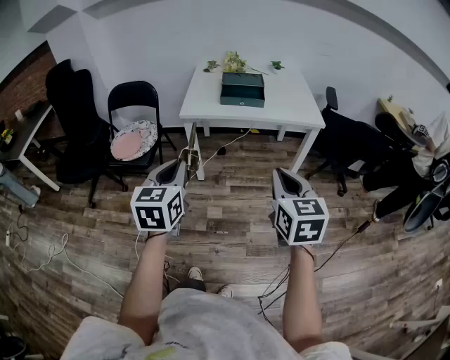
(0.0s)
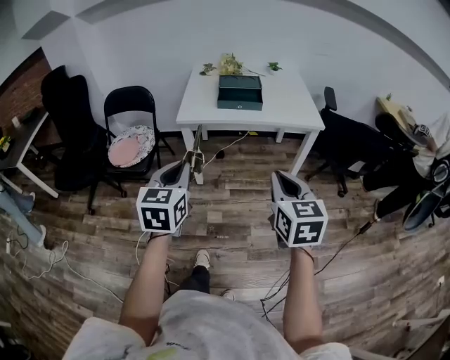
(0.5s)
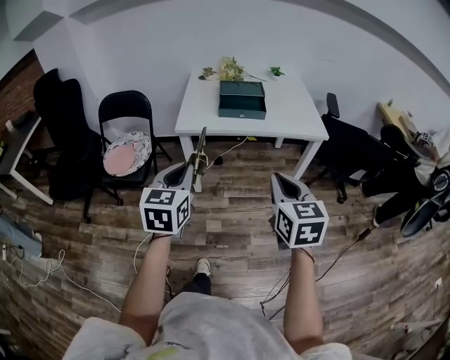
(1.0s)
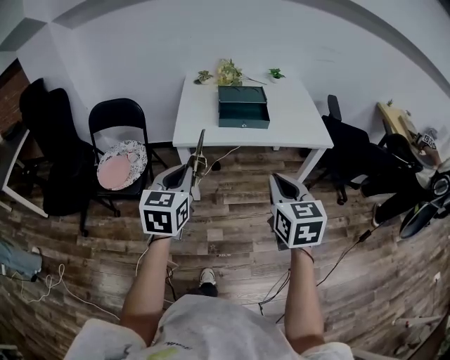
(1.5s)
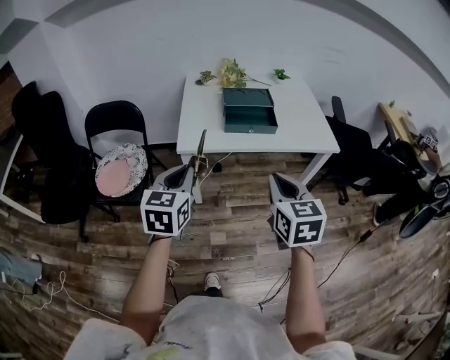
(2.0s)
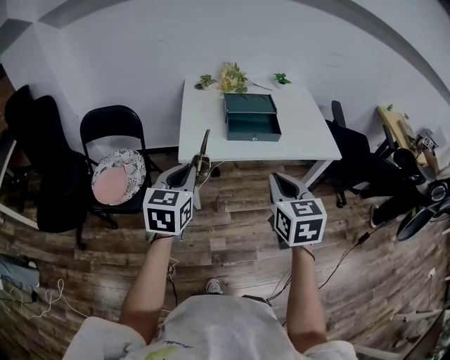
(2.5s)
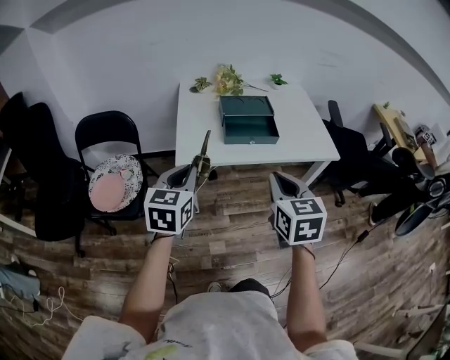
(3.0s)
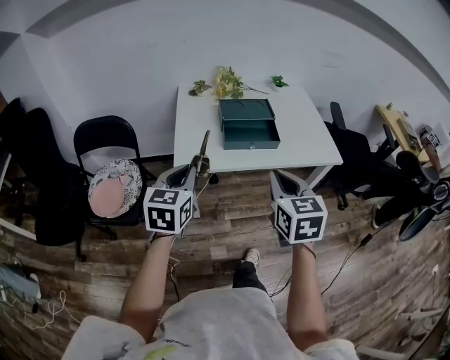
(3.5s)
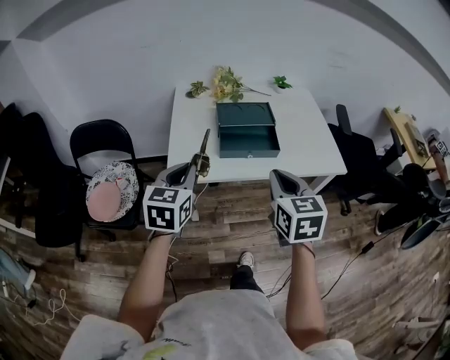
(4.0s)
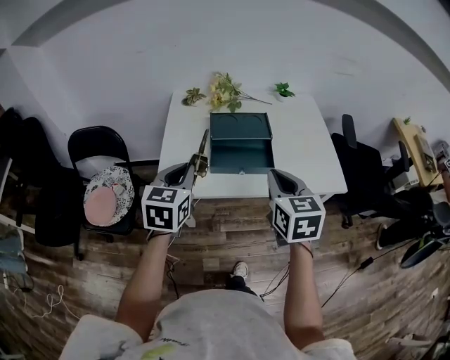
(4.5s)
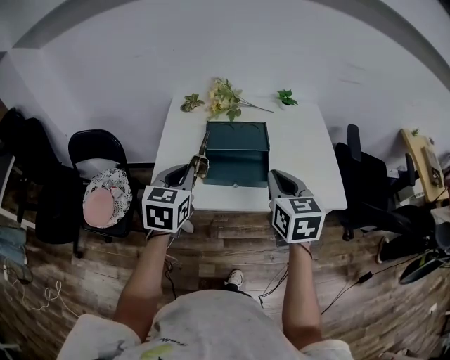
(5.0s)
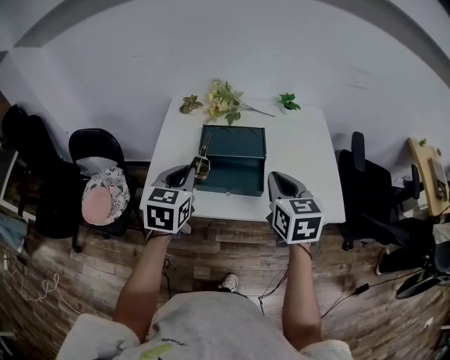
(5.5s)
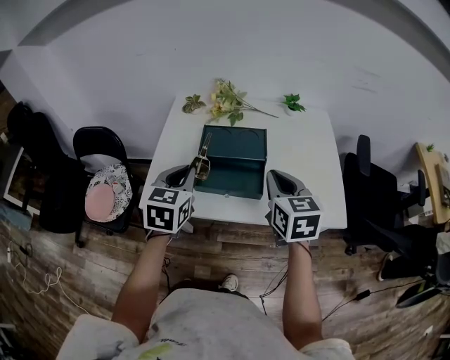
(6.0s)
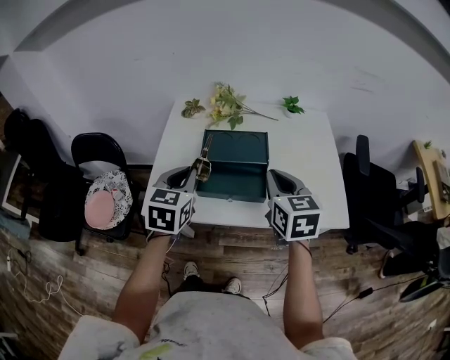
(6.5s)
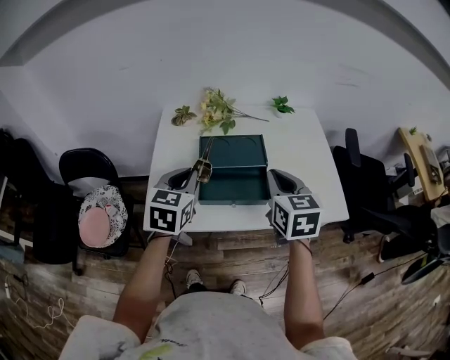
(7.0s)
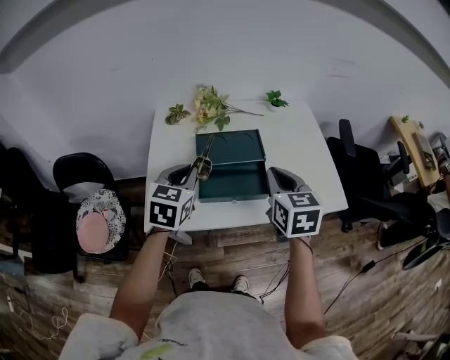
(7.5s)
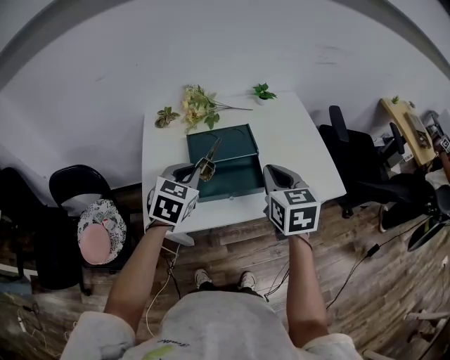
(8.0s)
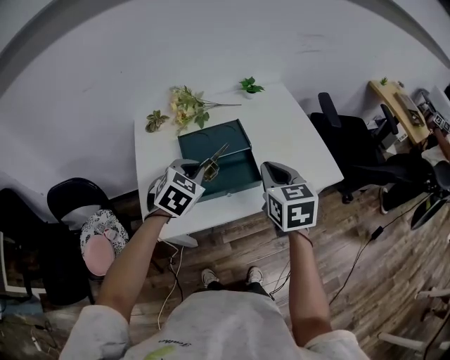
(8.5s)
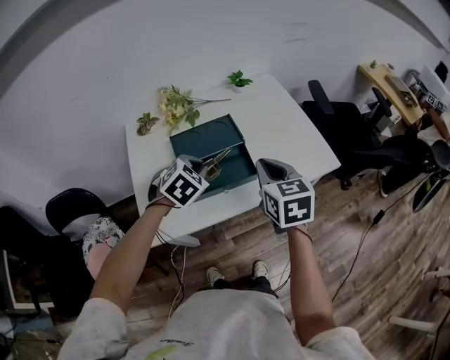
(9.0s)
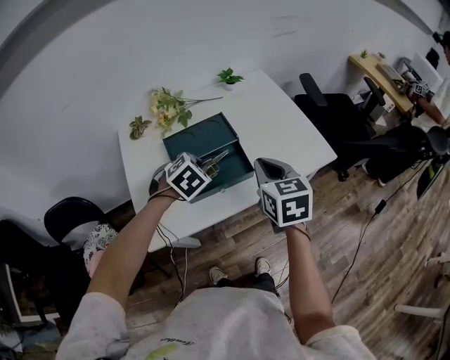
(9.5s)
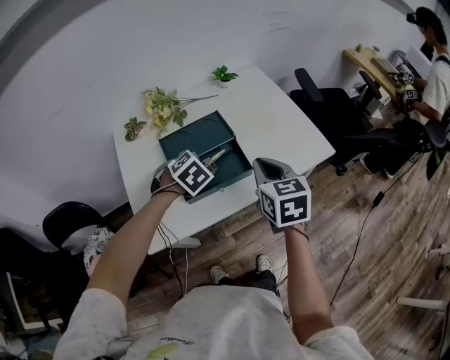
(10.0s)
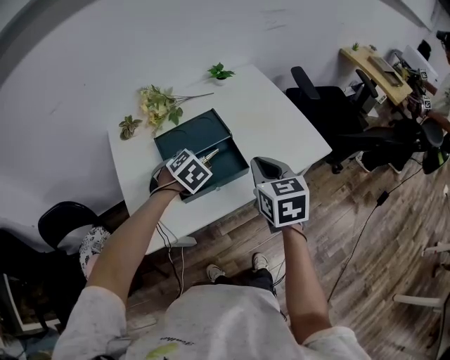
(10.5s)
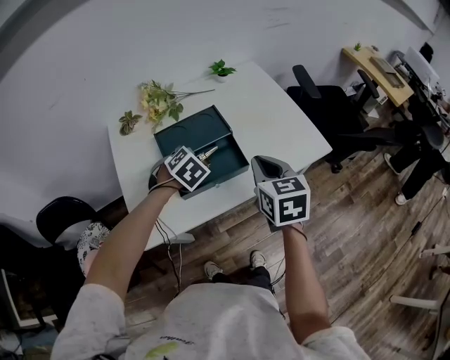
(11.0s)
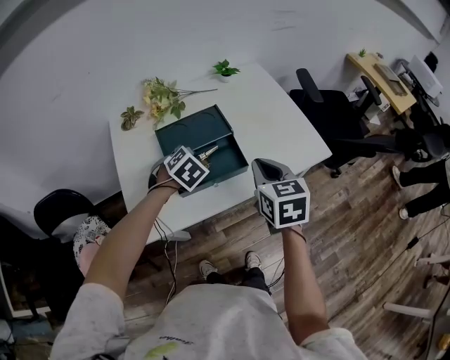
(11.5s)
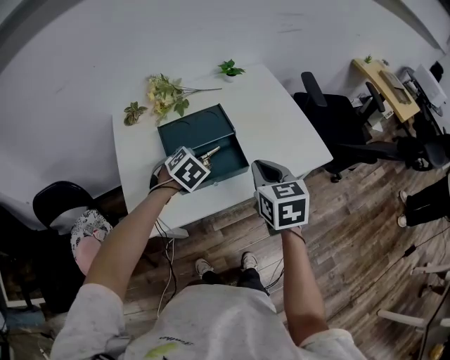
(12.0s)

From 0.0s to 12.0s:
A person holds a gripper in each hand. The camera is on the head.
From 0.0s to 2.0s: The left gripper travels forward by roughly 25 cm; the right gripper shifts some 25 cm forward and to the left.
From 2.0s to 4.0s: The grippers both shift forward by about 15 cm.
From 4.0s to 6.0s: Both grippers travel together forward and to the right, some 20 cm.
From 6.0s to 8.0s: The left gripper goes approximately 5 cm forward, and changes its angle by roughly 30 degrees.
From 8.0s to 10.0s: The left gripper moves downward, to the right and forward, about 10 cm, and turns by approximately 40 degrees.
From 10.0s to 12.0s: The grippers move only a little.

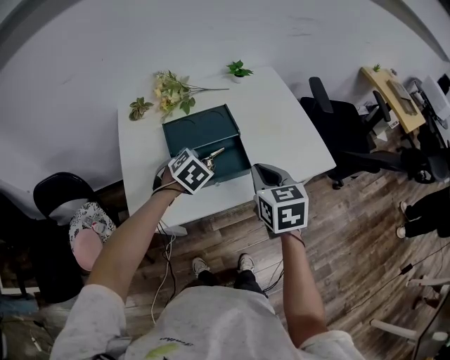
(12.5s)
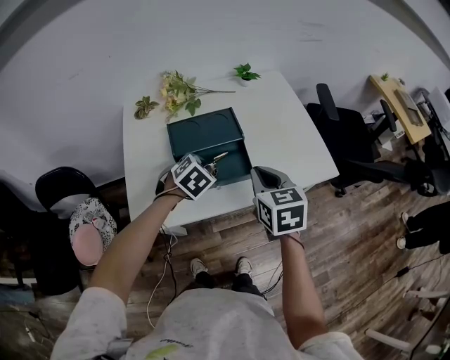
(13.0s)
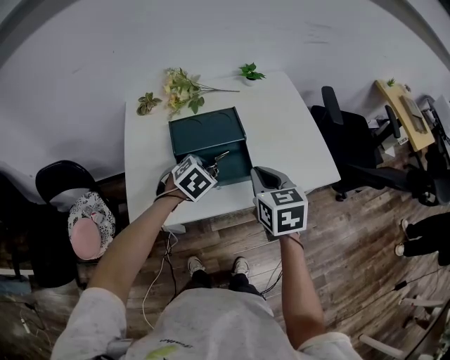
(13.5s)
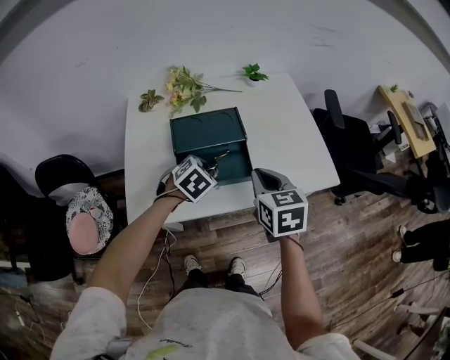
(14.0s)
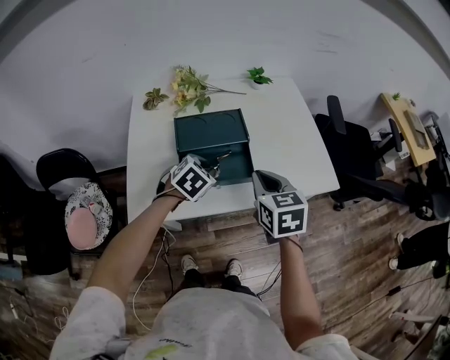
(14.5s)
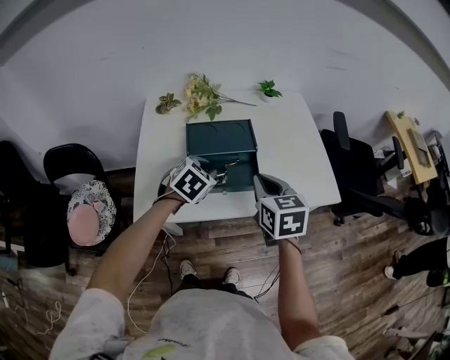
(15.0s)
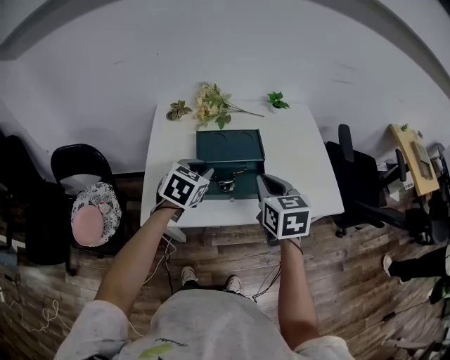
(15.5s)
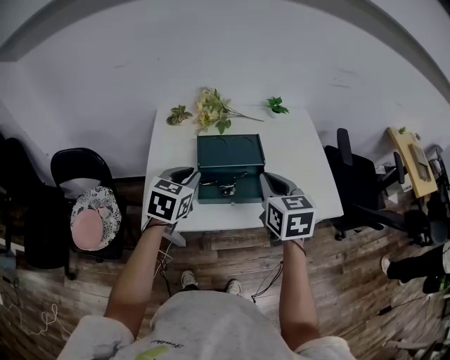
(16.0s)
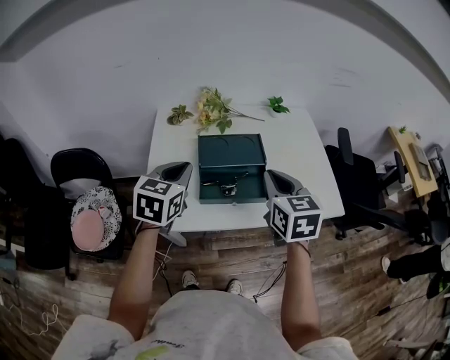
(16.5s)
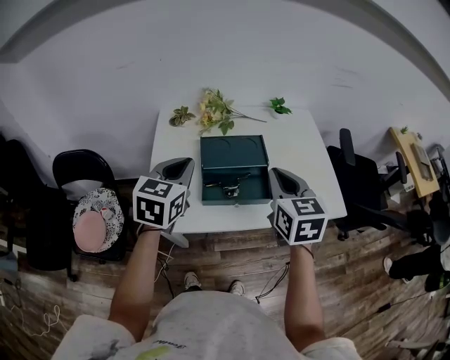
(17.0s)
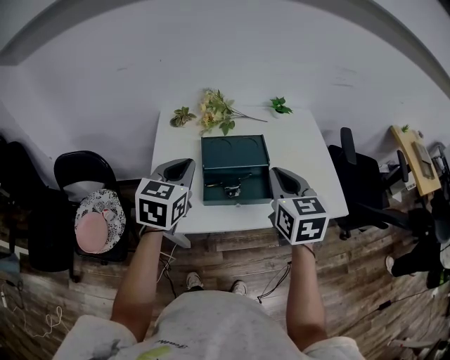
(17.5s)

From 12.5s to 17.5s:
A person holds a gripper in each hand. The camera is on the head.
From 12.5s to 15.0s: The grippers stay close to where they were, moving slightly.
From 15.0s to 17.5s: The right gripper shifts roughly 10 cm upward. Meanwhile the left gripper travels upward and to the left by approximately 15 cm, rotates some 40 degrees, and closes its fingers.

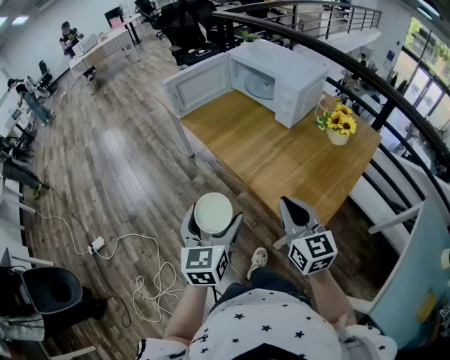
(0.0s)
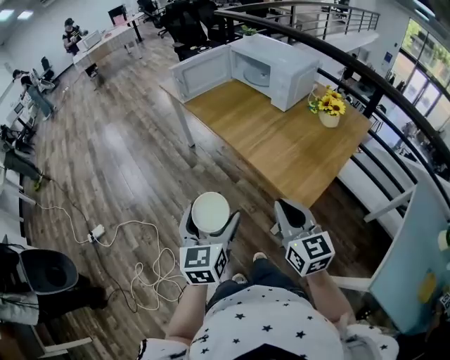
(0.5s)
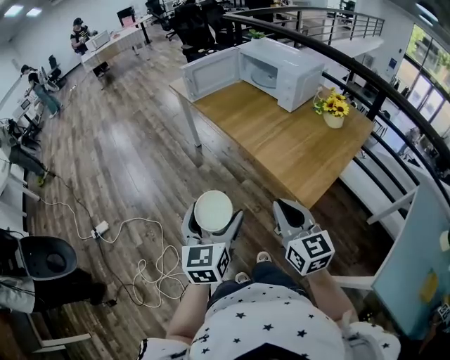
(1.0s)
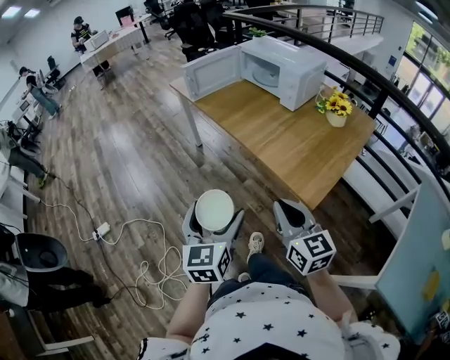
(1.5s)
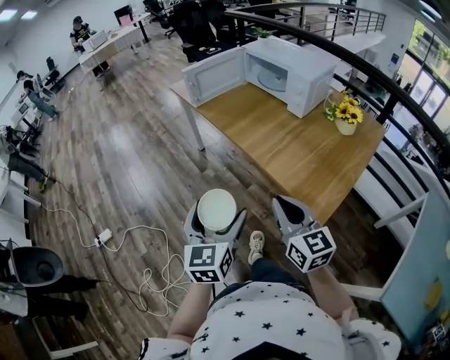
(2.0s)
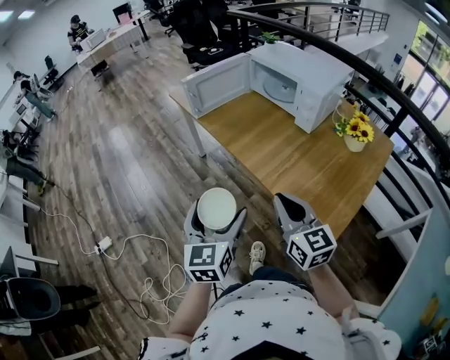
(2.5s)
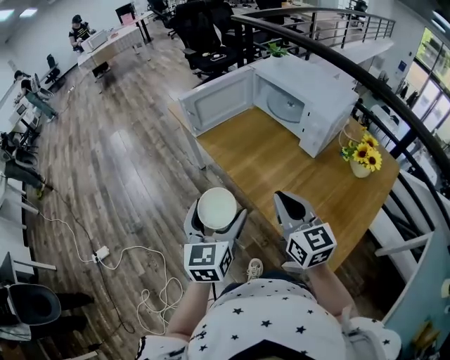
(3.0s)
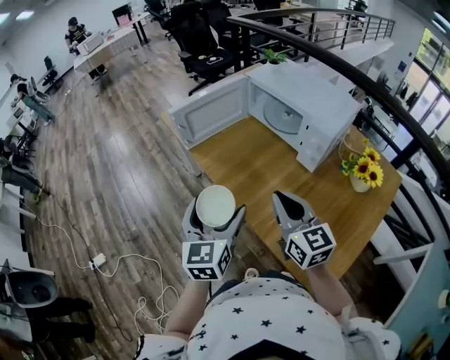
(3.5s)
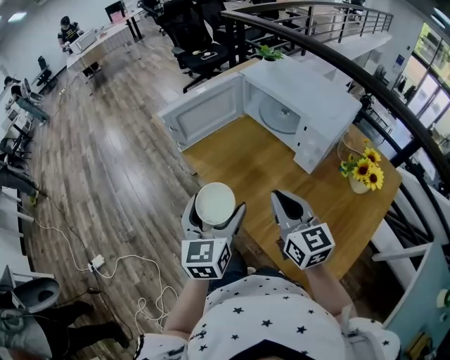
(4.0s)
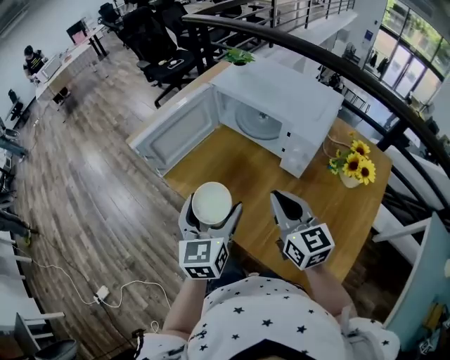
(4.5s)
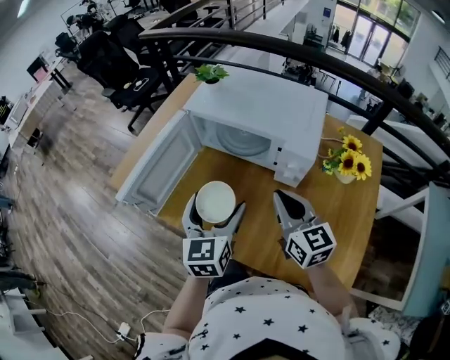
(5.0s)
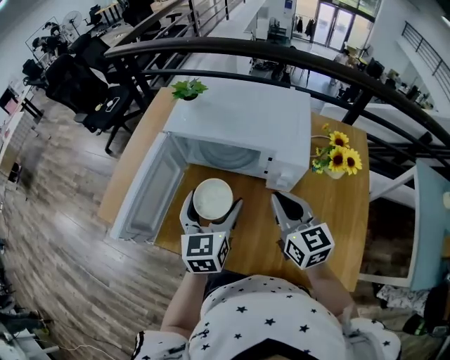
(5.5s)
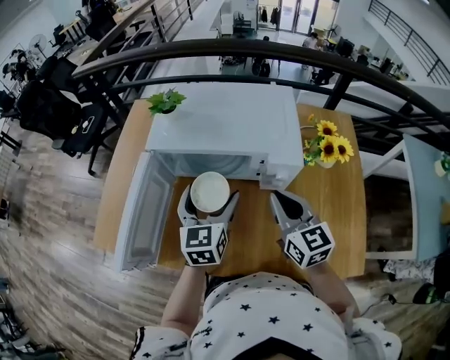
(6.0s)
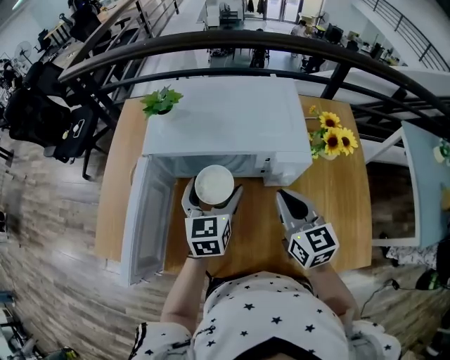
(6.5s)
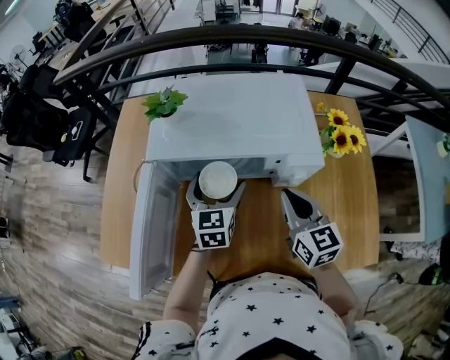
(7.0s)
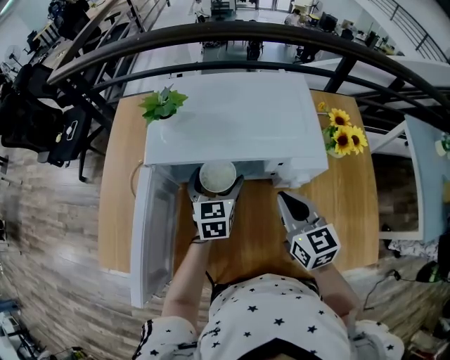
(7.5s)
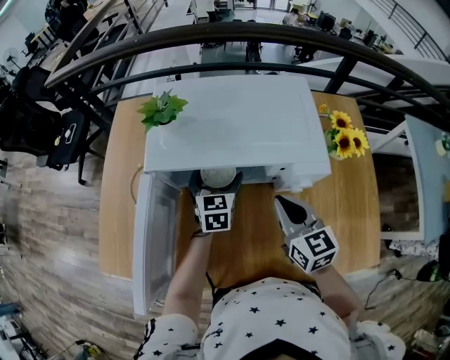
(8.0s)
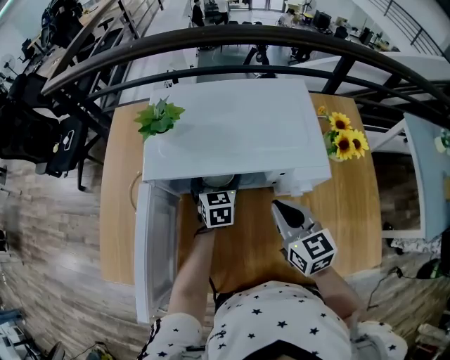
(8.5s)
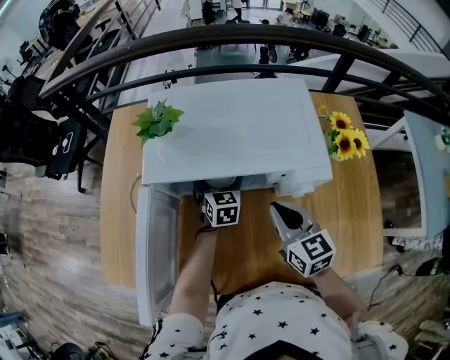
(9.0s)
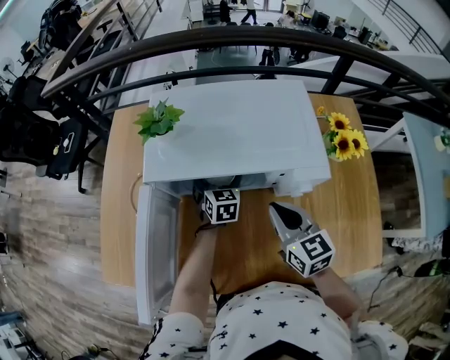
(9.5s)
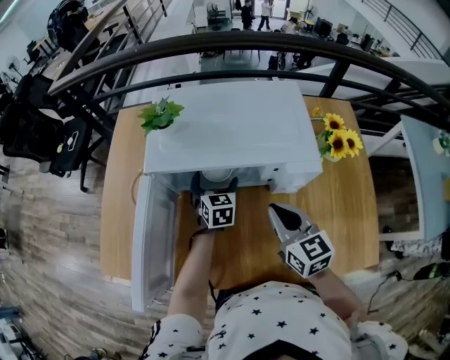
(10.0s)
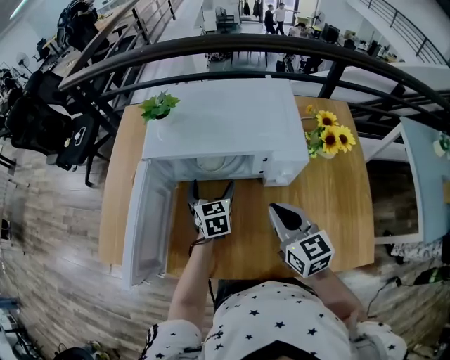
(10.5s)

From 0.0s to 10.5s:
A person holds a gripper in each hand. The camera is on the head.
From 0.0s to 2.0s: Both grippers travel together to the left and backward, roughly 10 cm.
From 2.0s to 4.0s: Both grippers move forward, approximately 35 cm.
From 4.0s to 6.5s: The right gripper shifts by about 20 cm, and changes its angle by some 50 degrees, while the left gripper shifts by approximately 35 cm, and changes its angle by approximately 50 degrees.
From 6.5s to 8.5s: The right gripper changes place by roughly 5 cm, while the left gripper shifts approximately 15 cm forward and downward.
From 8.5s to 10.5s: Both grippers move backward, roughly 10 cm.
